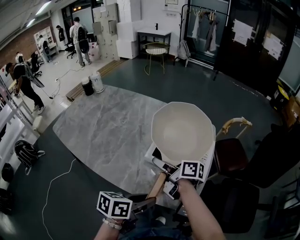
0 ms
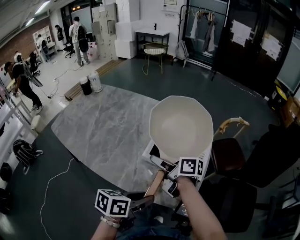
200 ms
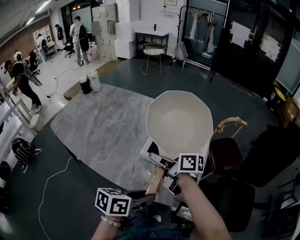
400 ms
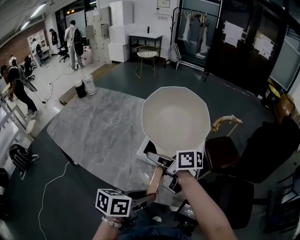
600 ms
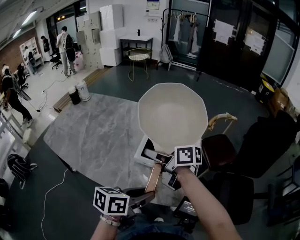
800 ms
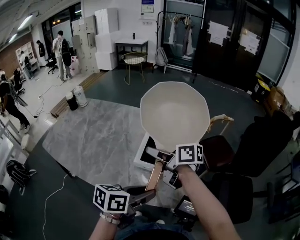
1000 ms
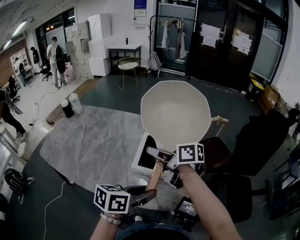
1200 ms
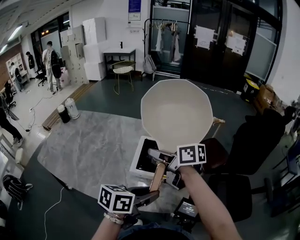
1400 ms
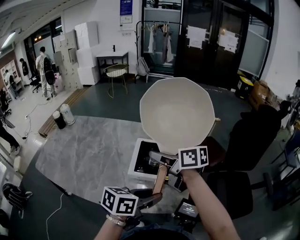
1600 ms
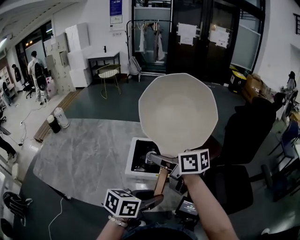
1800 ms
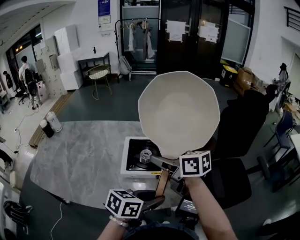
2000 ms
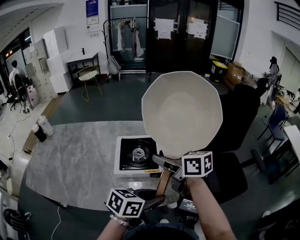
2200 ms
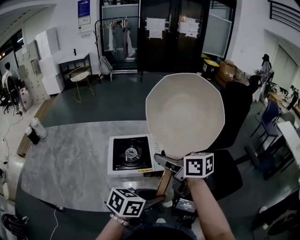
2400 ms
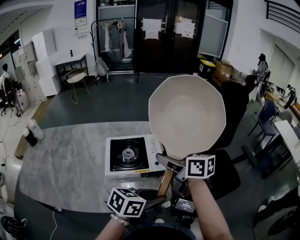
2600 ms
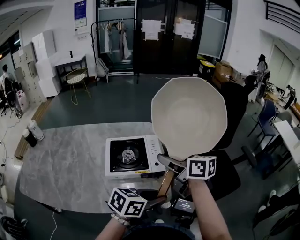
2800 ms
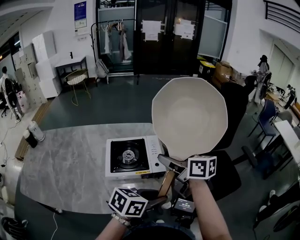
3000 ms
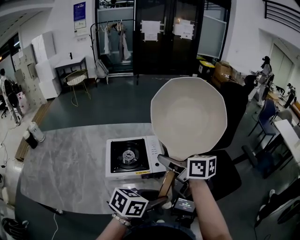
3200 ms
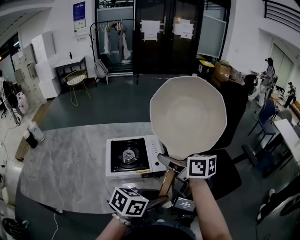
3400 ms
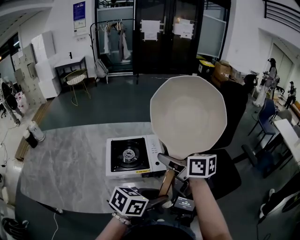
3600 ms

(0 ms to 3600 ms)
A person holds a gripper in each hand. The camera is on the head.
0 ms - 1800 ms: The left gripper travels to the right and upward by roughly 10 cm, and rotates approximately 30 degrees. Meanwhile the right gripper heads upward and to the right, covering about 15 cm, and turns by approximately 30 degrees.
1800 ms - 3600 ms: The right gripper travels to the right by some 15 cm, and turns by about 20 degrees. The left gripper travels to the right by some 10 cm, and turns by approximately 20 degrees.

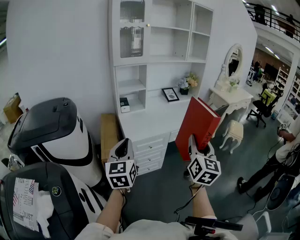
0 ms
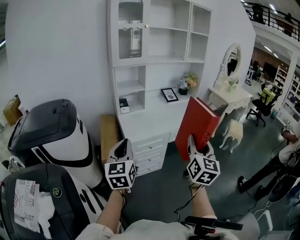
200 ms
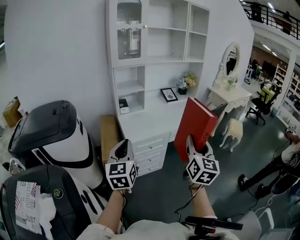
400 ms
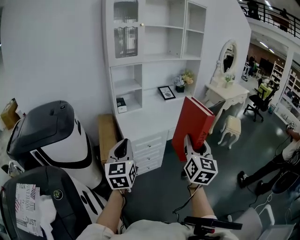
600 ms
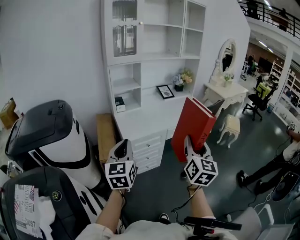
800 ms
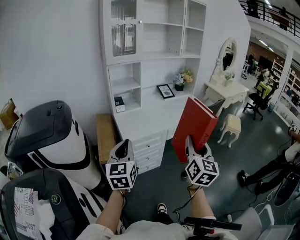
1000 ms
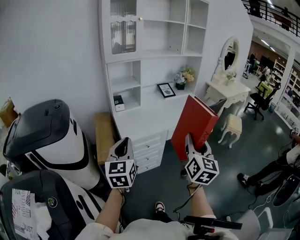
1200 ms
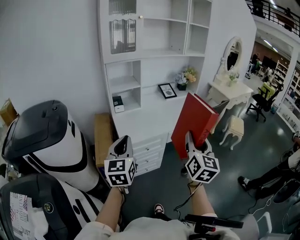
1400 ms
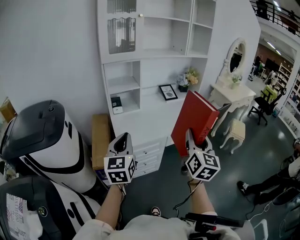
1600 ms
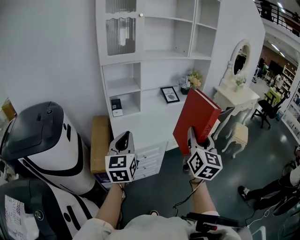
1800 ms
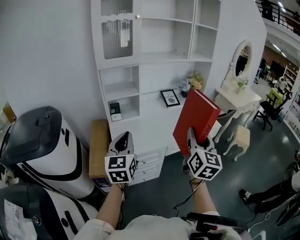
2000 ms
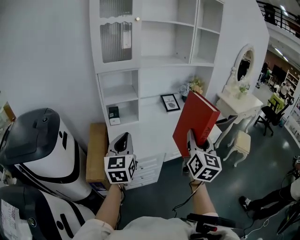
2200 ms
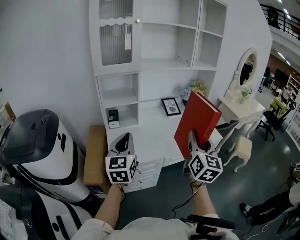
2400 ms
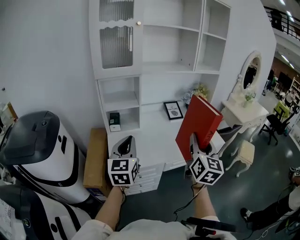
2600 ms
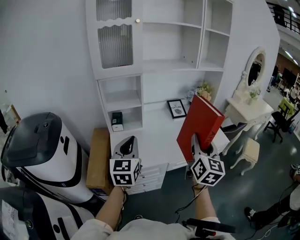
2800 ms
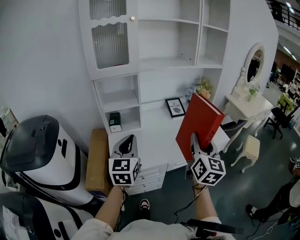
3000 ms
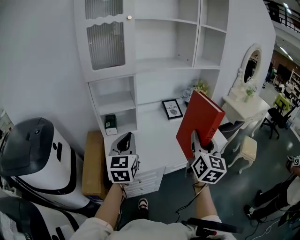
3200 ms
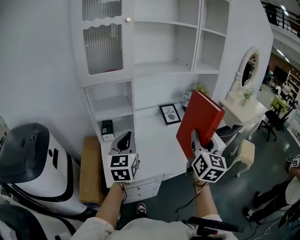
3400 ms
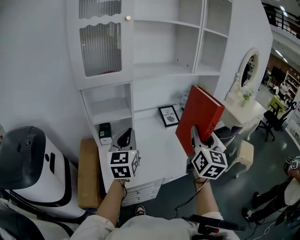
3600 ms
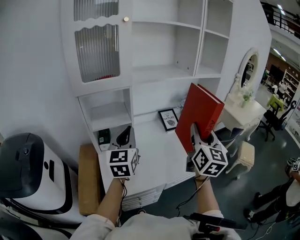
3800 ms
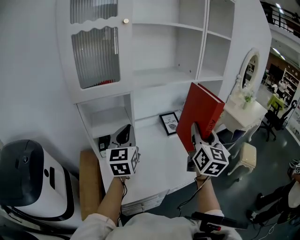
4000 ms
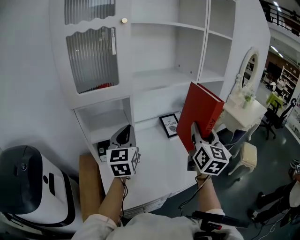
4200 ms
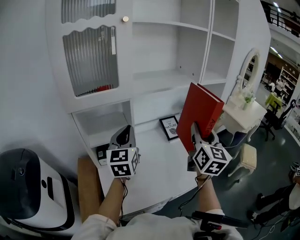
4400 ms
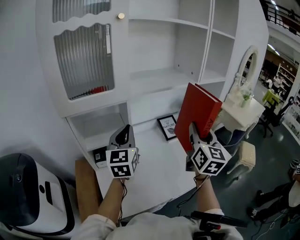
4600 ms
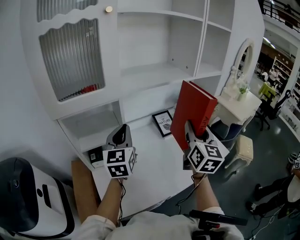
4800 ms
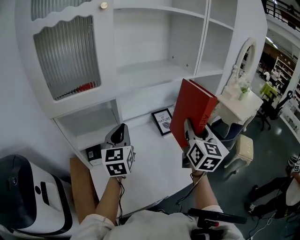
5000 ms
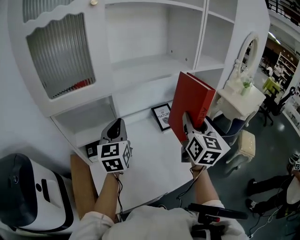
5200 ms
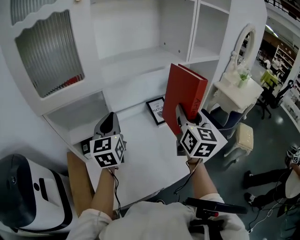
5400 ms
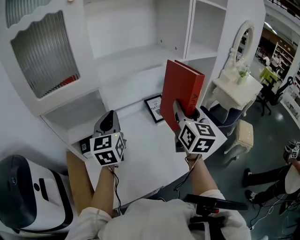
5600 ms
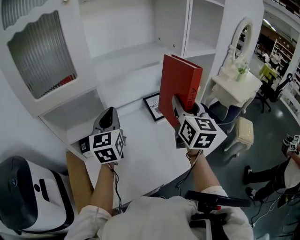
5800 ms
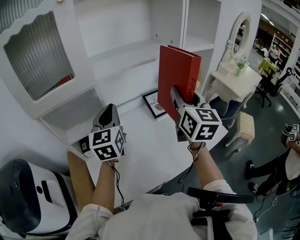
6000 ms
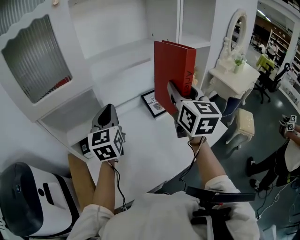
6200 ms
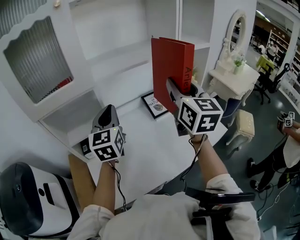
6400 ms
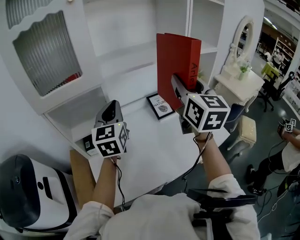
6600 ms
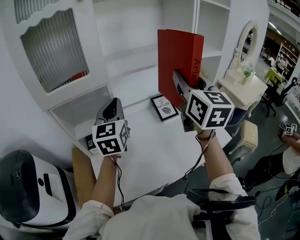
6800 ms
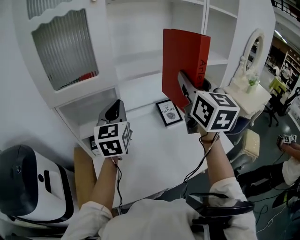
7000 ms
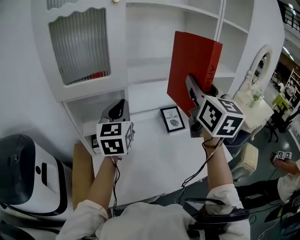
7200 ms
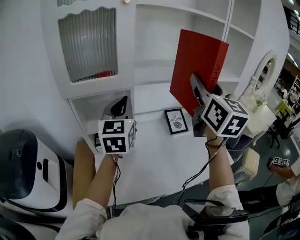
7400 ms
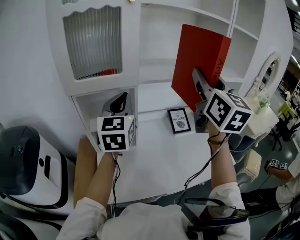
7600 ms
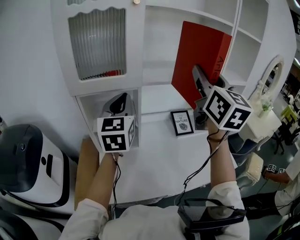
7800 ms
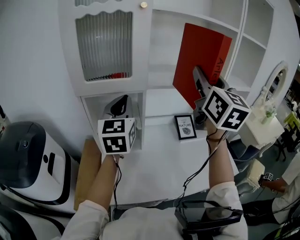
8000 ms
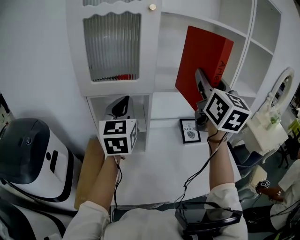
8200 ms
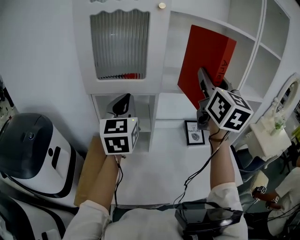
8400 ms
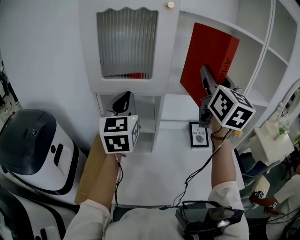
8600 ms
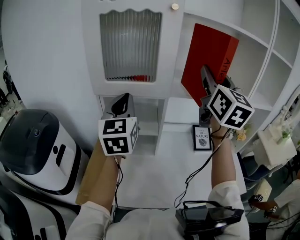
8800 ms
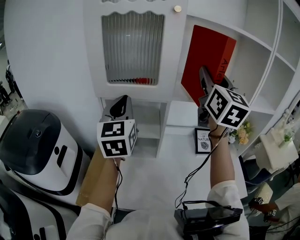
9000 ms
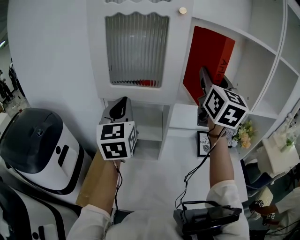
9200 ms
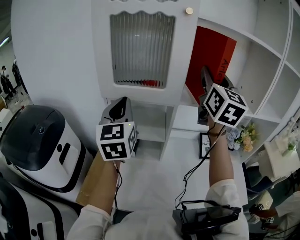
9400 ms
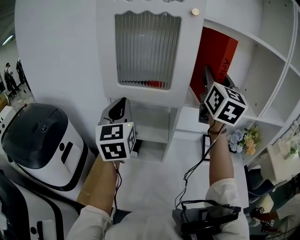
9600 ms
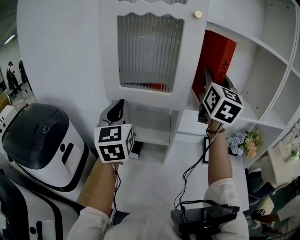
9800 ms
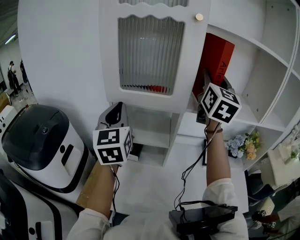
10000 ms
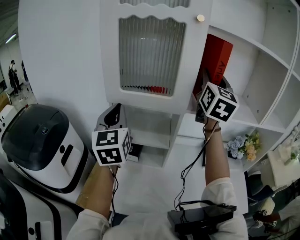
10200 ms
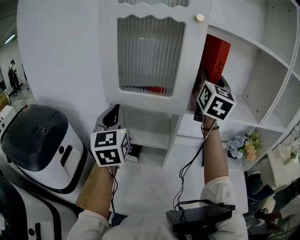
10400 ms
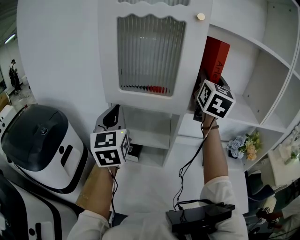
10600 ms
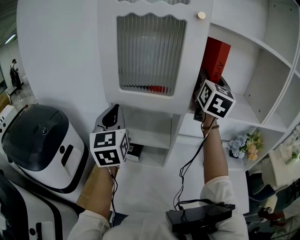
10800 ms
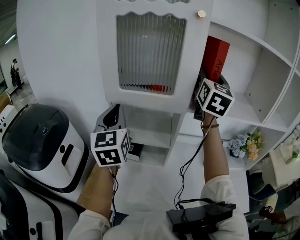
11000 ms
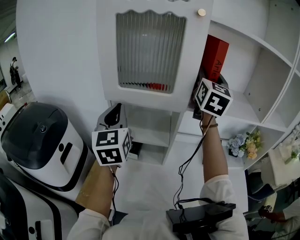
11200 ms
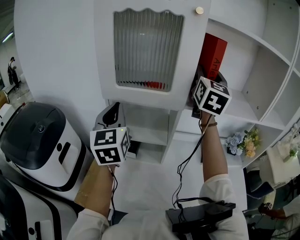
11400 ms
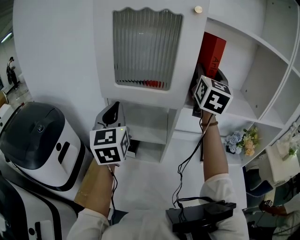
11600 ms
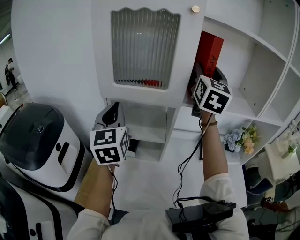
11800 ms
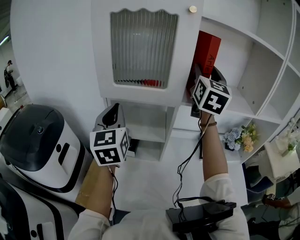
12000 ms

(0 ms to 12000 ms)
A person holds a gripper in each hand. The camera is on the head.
0 ms - 1600 ms: The grippers both shift forward by some 15 cm.
1600 ms - 3000 ms: Both grippers move forward, some 20 cm.
3000 ms - 4400 ms: Both grippers travel together forward, some 25 cm.
4400 ms - 6000 ms: Both grippers travel together forward, some 10 cm.
6000 ms - 7600 ms: The right gripper moves upward and to the left, approximately 15 cm; the left gripper heads upward and to the left, covering roughly 10 cm.
7600 ms - 9000 ms: The left gripper travels to the left by roughly 10 cm. Meanwhile the right gripper moves forward and to the left, roughly 15 cm.
9000 ms - 10400 ms: The right gripper goes roughly 10 cm forward. Meanwhile the left gripper travels to the left by approximately 5 cm.
10400 ms - 12000 ms: The grippers move only a little.

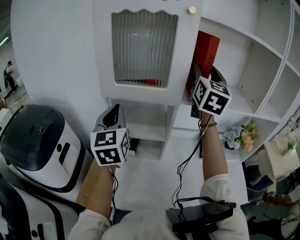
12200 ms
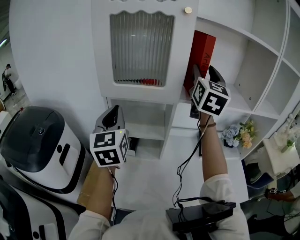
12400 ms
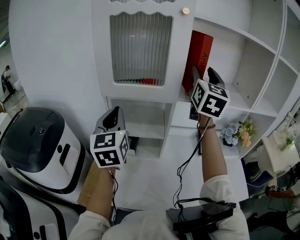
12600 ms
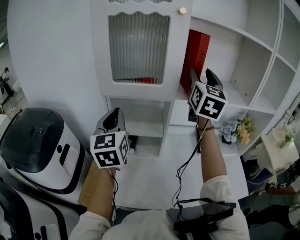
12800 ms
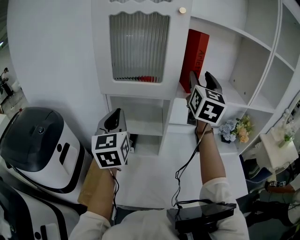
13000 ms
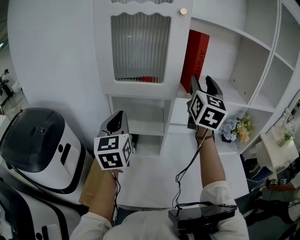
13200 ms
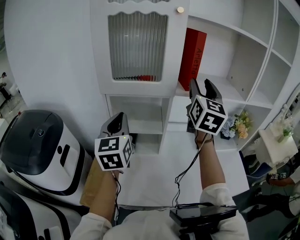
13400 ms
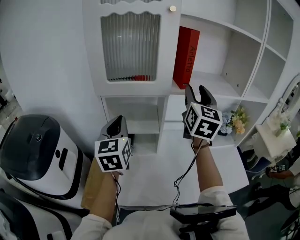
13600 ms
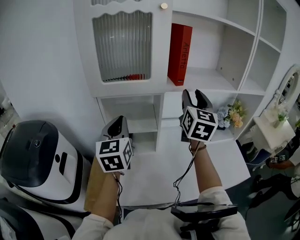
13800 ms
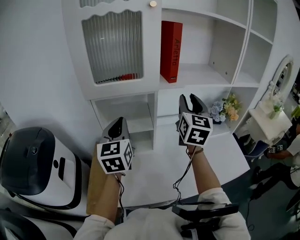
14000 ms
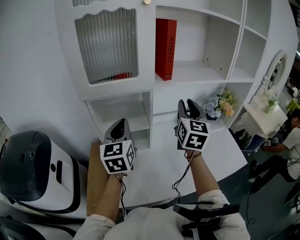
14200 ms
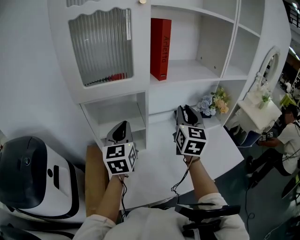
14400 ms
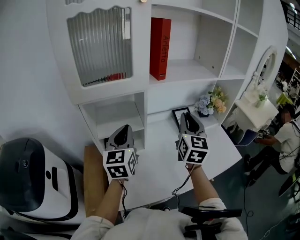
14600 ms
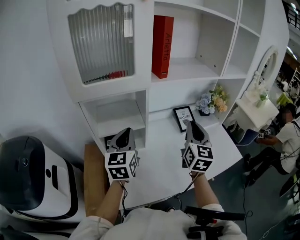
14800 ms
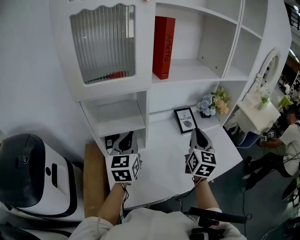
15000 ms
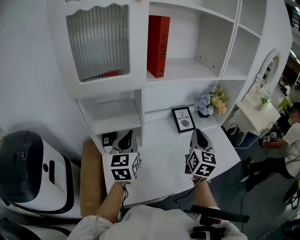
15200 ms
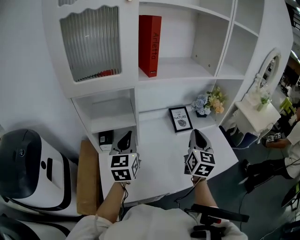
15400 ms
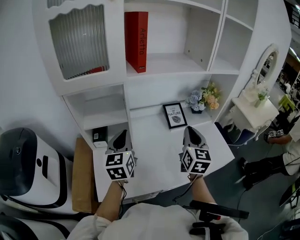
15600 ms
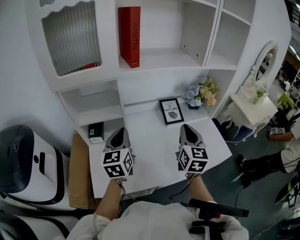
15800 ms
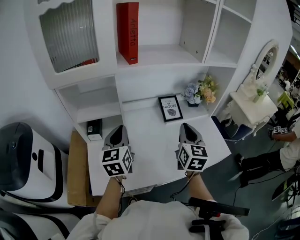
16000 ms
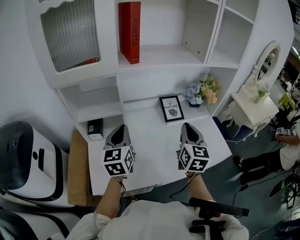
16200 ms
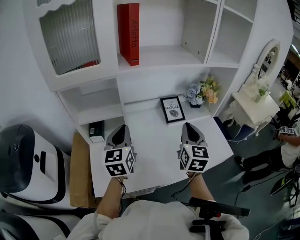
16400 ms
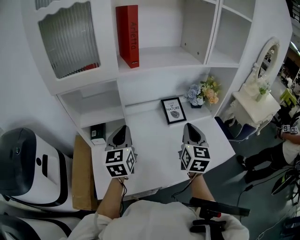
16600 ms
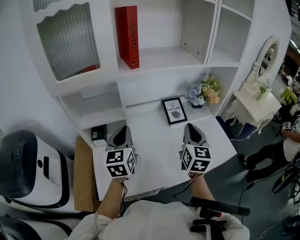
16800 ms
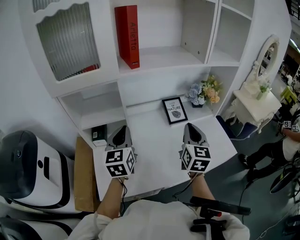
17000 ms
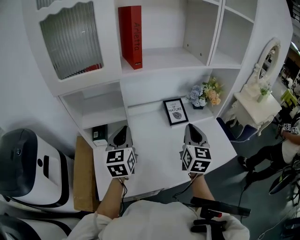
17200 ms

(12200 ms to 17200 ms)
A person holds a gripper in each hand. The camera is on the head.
12200 ms - 13800 ms: The right gripper shifts roughly 15 cm downward and backward. Meanwhile the left gripper moves some 5 cm.
13800 ms - 15600 ms: The left gripper moves to the right and downward, some 20 cm. The right gripper moves downward, to the right and backward, about 25 cm, and closes.
15600 ms - 17200 ms: There are only small adjustments of the grippers.

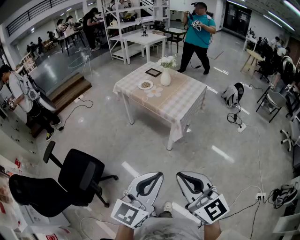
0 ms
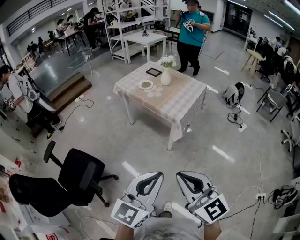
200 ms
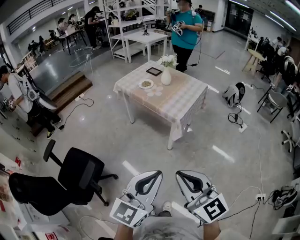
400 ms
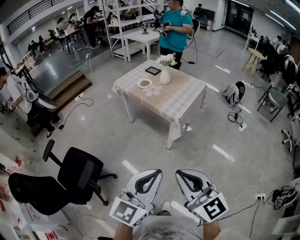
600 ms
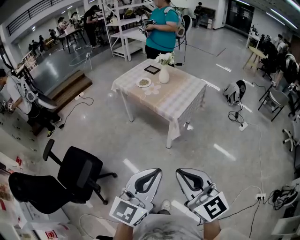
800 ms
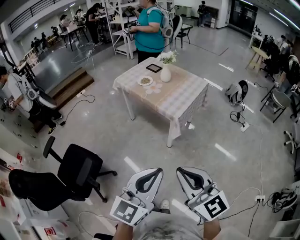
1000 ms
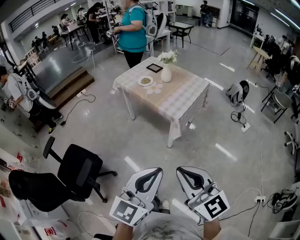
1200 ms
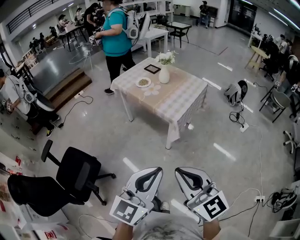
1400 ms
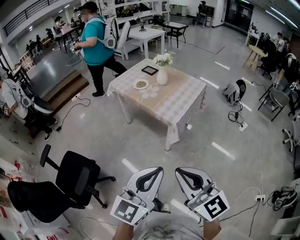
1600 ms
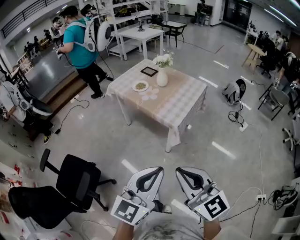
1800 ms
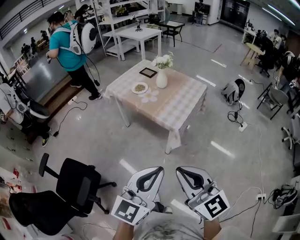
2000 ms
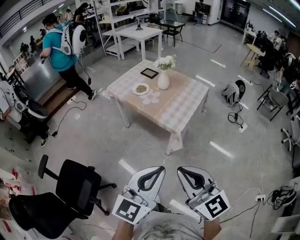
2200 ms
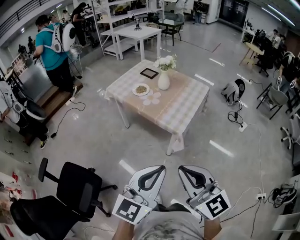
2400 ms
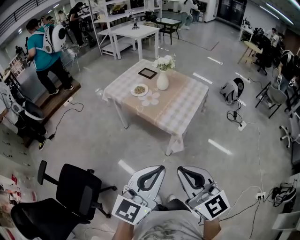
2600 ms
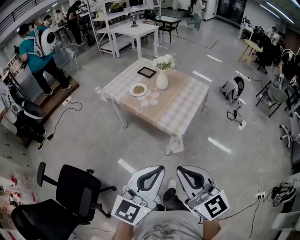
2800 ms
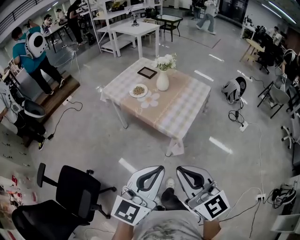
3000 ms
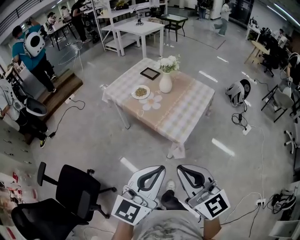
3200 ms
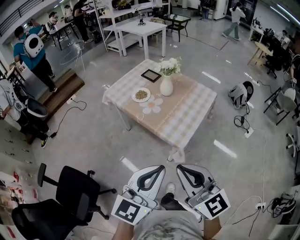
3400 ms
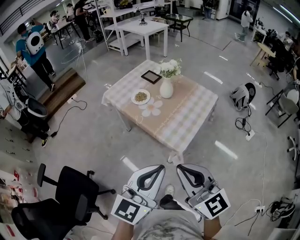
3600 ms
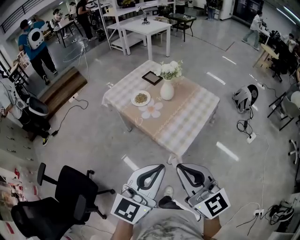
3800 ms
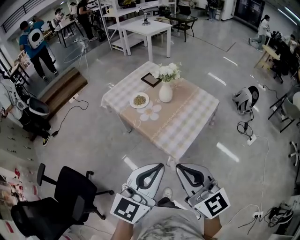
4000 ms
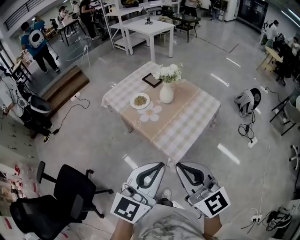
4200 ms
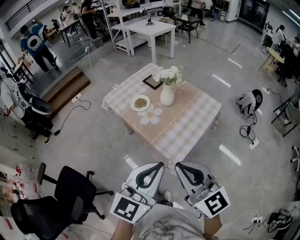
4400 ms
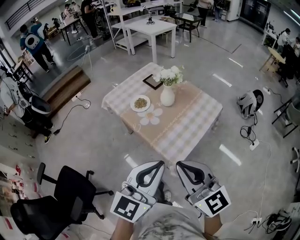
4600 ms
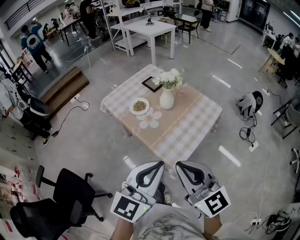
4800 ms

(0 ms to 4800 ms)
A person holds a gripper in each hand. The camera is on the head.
0 ms - 1600 ms: The left gripper is displaced forward and to the right by about 10 cm. The right gripper moves forward, about 10 cm.
1600 ms - 3200 ms: The grippers both shift forward by approximately 20 cm.
3200 ms - 4800 ms: The two grippers go some 20 cm forward and to the right.
